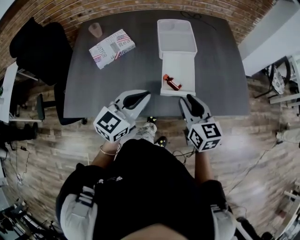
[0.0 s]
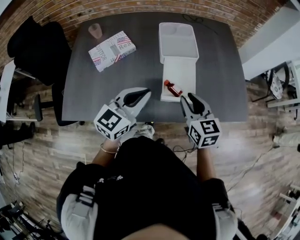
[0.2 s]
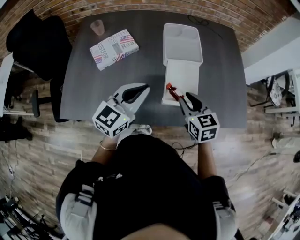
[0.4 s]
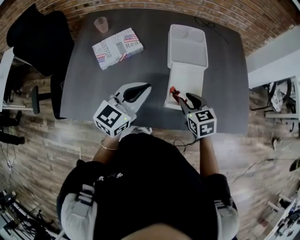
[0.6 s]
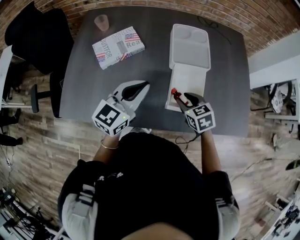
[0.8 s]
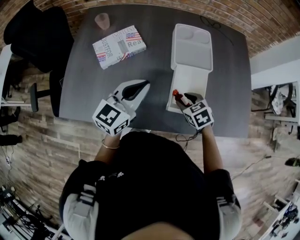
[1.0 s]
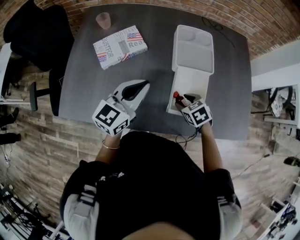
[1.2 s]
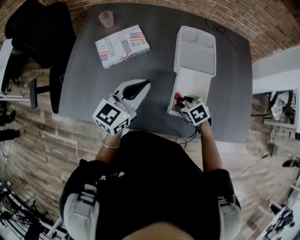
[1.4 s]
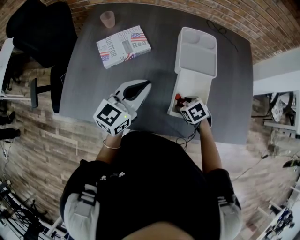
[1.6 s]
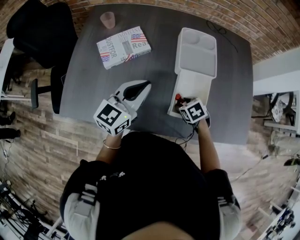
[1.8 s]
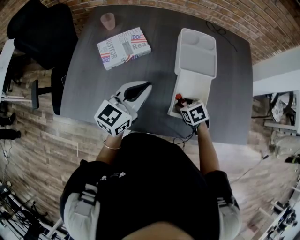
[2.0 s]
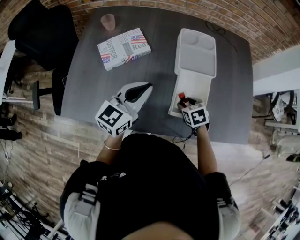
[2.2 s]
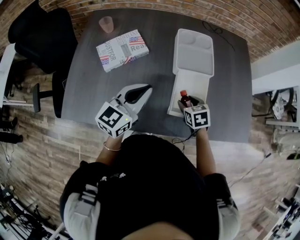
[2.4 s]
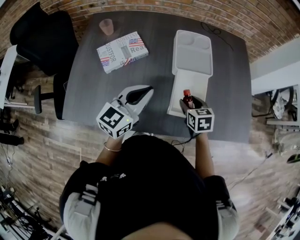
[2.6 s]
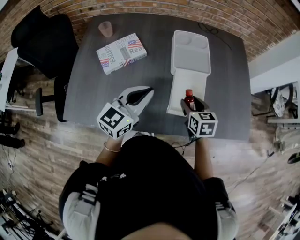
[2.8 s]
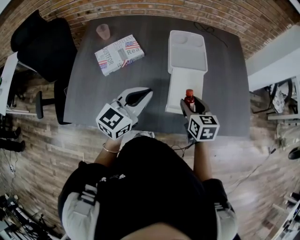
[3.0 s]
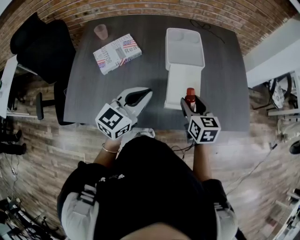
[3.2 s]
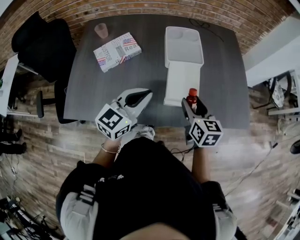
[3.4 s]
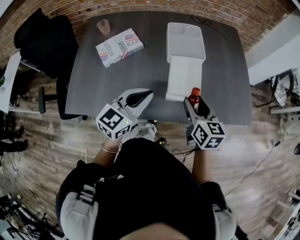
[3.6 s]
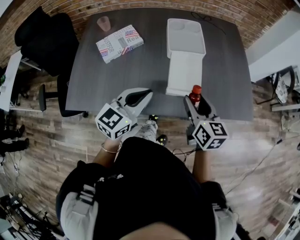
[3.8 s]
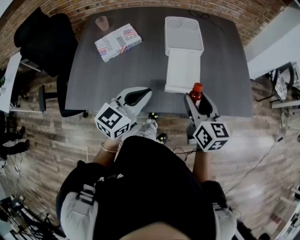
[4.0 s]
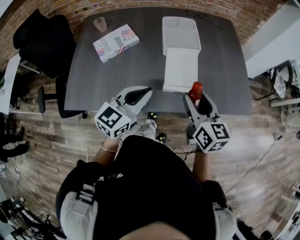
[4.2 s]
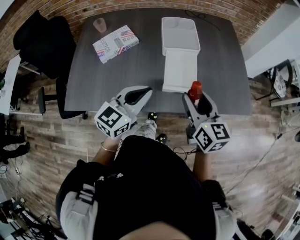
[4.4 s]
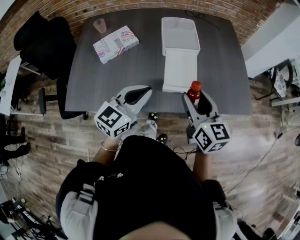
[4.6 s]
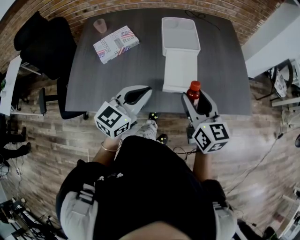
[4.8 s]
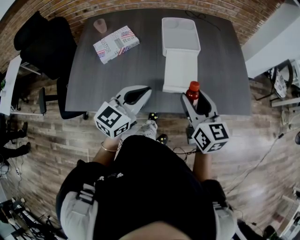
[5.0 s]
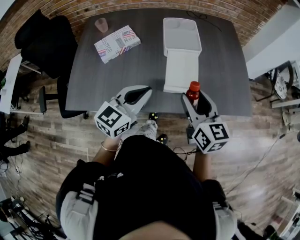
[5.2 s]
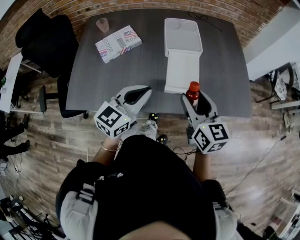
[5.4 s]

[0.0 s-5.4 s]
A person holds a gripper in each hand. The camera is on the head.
0.0 to 1.4 s: The left gripper travels forward and to the left by about 15 cm, while the right gripper moves downward and forward, some 25 cm, tips its fingers downward by about 50 degrees, and opens.
1.4 to 2.8 s: The right gripper goes some 10 cm upward, and rotates about 40 degrees.
2.8 to 4.0 s: The right gripper goes about 15 cm backward and upward, and rotates some 30 degrees, while the left gripper travels backward and to the right by some 10 cm.
4.0 to 5.4 s: There are only small adjustments of the grippers.

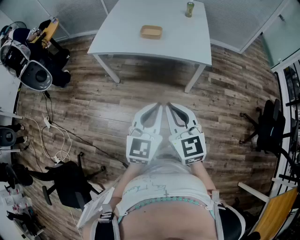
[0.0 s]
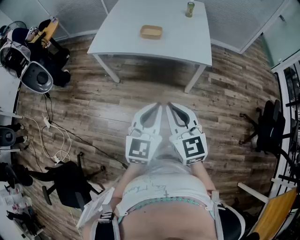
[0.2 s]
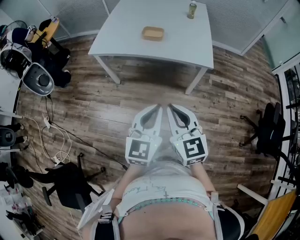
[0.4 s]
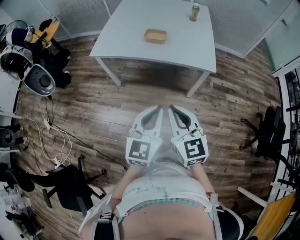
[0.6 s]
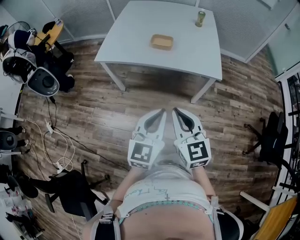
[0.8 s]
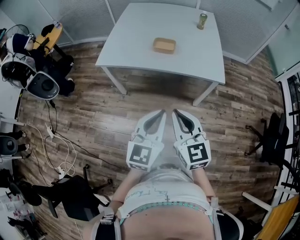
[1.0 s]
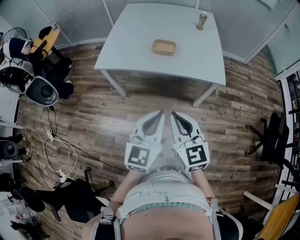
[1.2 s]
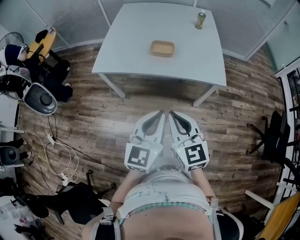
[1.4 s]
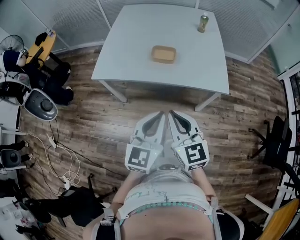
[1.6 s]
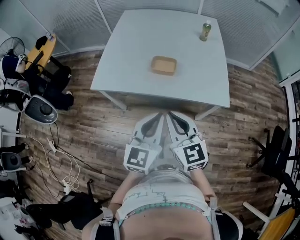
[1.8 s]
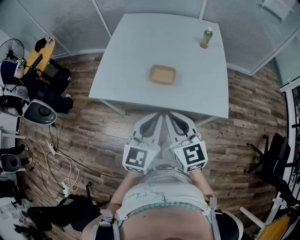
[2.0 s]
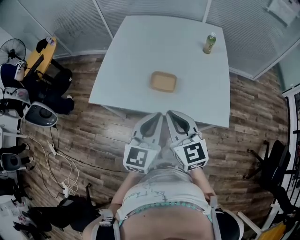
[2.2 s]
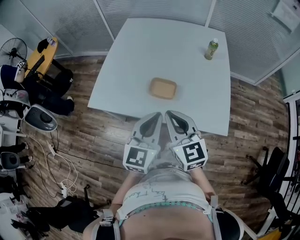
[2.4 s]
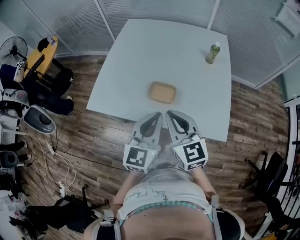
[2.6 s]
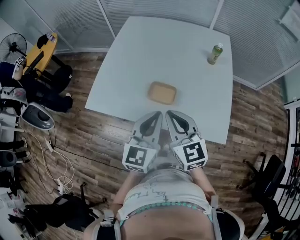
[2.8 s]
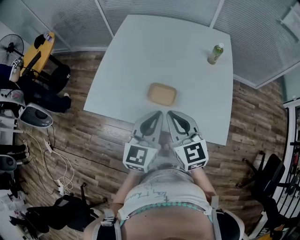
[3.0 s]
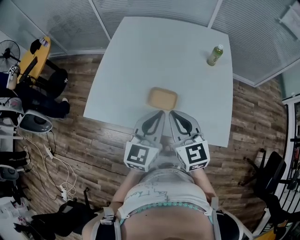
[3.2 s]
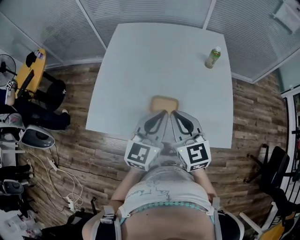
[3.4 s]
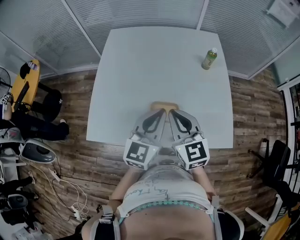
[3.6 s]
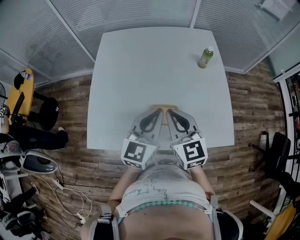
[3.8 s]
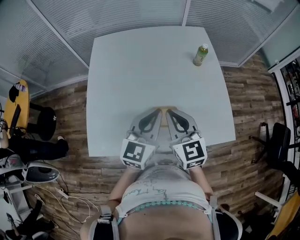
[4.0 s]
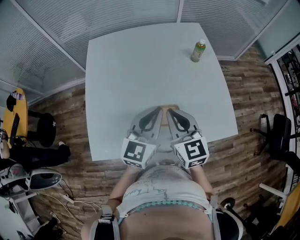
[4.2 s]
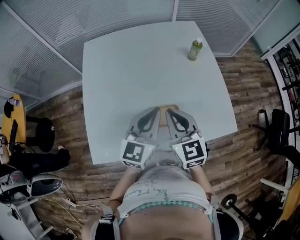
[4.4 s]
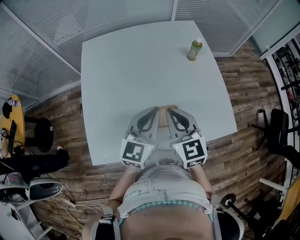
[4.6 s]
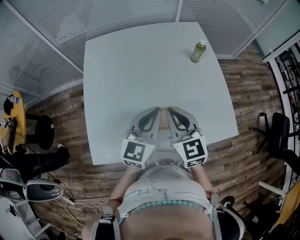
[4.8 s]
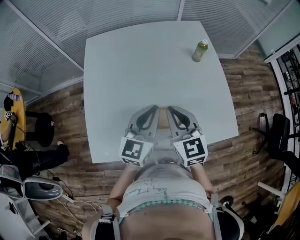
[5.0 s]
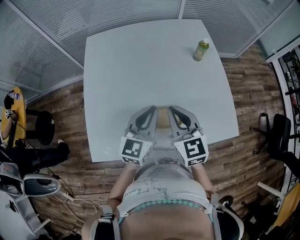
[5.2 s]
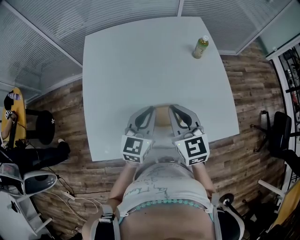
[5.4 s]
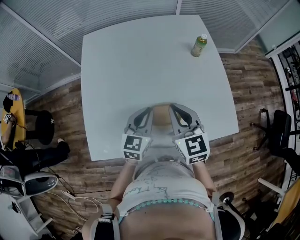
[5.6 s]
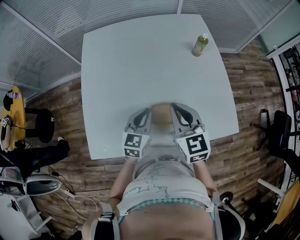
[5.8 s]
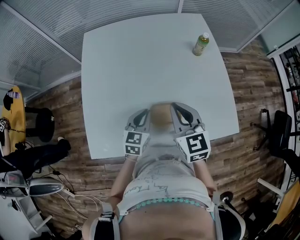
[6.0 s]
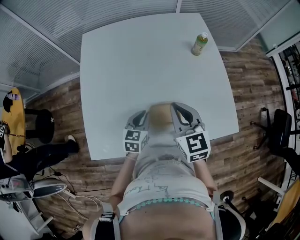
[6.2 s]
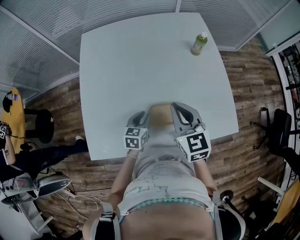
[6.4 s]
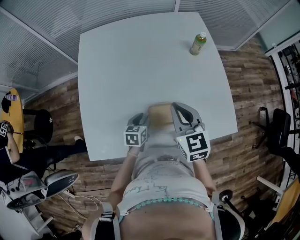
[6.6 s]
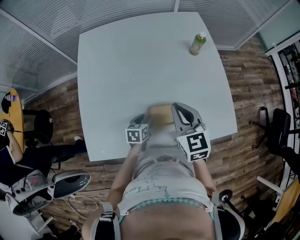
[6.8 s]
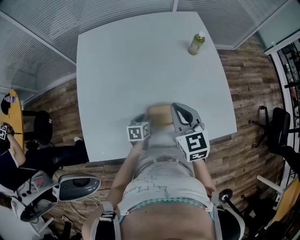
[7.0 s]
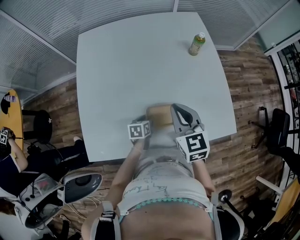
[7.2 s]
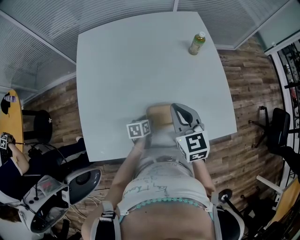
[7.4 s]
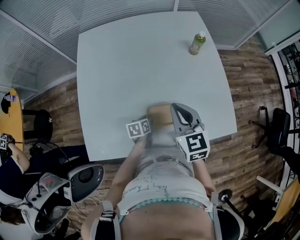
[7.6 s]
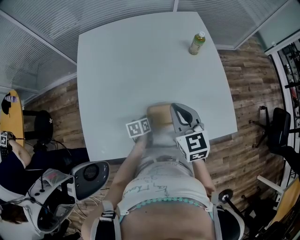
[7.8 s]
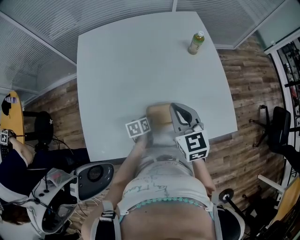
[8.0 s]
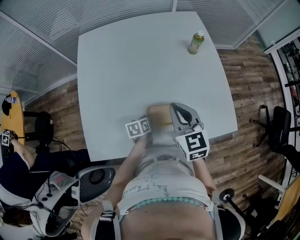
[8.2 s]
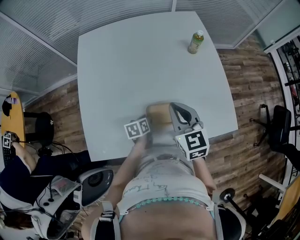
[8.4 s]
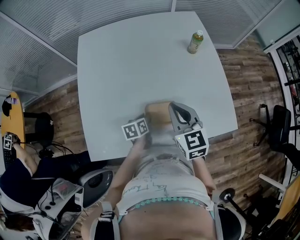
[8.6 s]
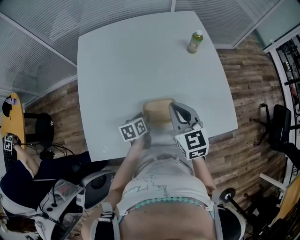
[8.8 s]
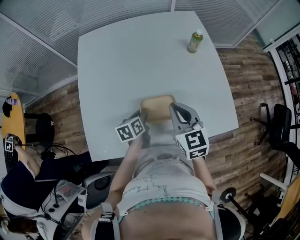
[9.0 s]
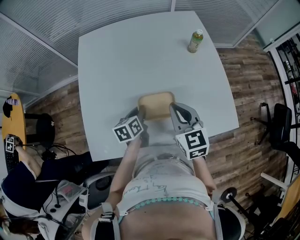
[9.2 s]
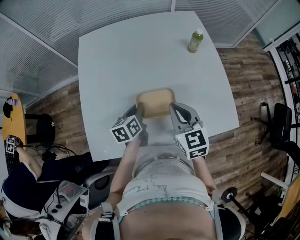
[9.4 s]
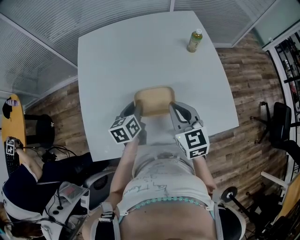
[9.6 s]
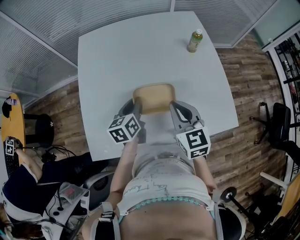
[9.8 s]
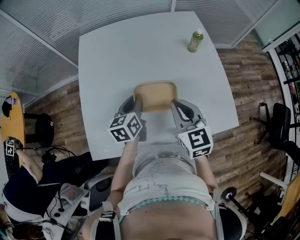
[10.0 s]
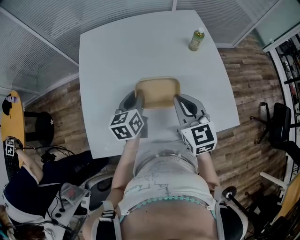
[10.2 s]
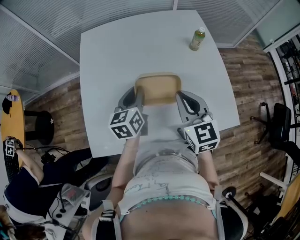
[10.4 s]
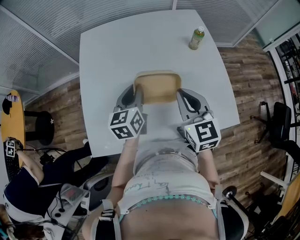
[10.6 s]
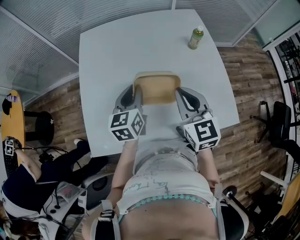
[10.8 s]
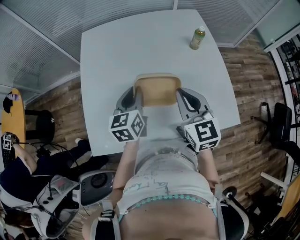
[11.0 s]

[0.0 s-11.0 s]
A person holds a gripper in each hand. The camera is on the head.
0.0 to 1.6 s: The grippers both shift forward and to the left by about 20 cm.
1.6 to 3.2 s: The grippers both shift forward by approximately 35 cm.
3.2 to 4.8 s: The two grippers go some 15 cm forward and to the left. The left gripper changes its angle by approximately 20 degrees. Meanwhile the right gripper changes its angle by approximately 20 degrees.
4.8 to 6.2 s: The left gripper heads downward, covering roughly 20 cm, and changes its angle by about 30 degrees.
6.2 to 7.8 s: The left gripper goes some 15 cm downward, turns by some 40 degrees, and opens, then closes again.
7.8 to 9.4 s: The left gripper moves upward, roughly 15 cm, and rotates approximately 20 degrees.
9.4 to 11.0 s: The right gripper goes some 5 cm upward. The left gripper is displaced upward by approximately 10 cm, and swivels roughly 20 degrees.

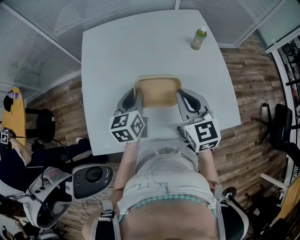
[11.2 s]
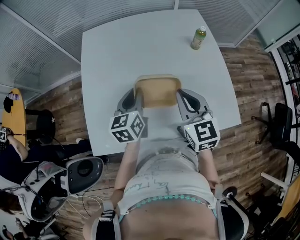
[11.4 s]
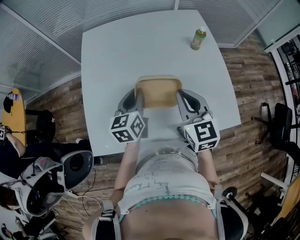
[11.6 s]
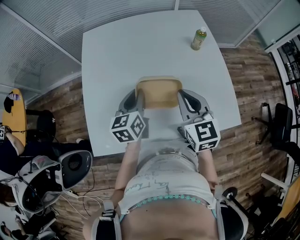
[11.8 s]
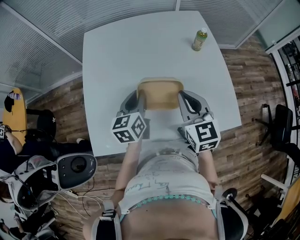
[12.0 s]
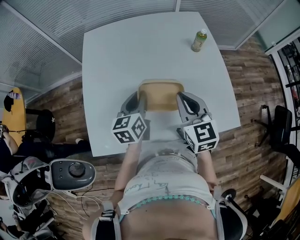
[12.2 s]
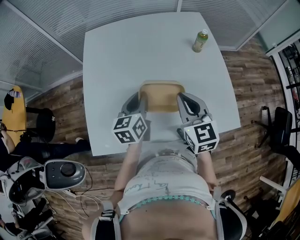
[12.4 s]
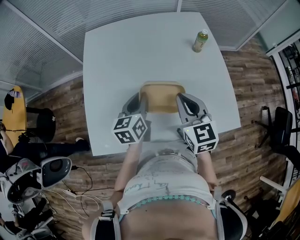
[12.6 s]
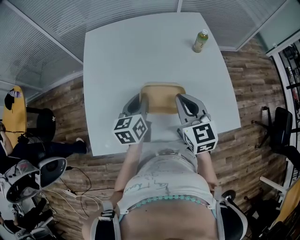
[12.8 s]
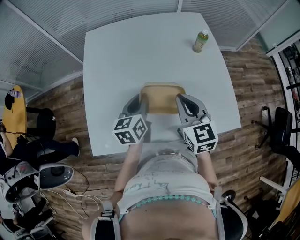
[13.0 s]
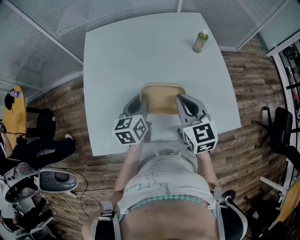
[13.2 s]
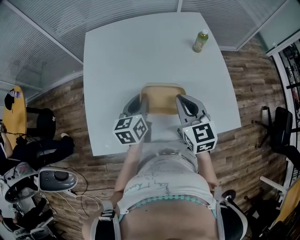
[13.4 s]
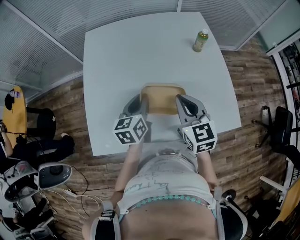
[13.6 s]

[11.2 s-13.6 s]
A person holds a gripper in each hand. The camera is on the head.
11.2 to 12.4 s: There are only small adjustments of the grippers.
12.4 to 13.6 s: Both grippers stay about where they are.

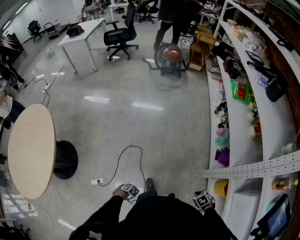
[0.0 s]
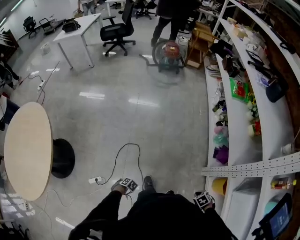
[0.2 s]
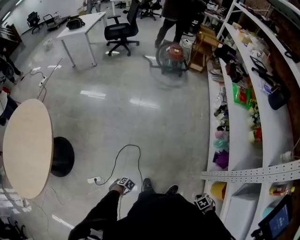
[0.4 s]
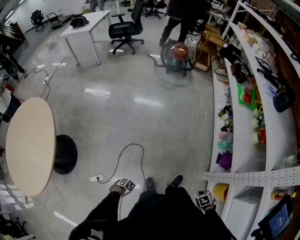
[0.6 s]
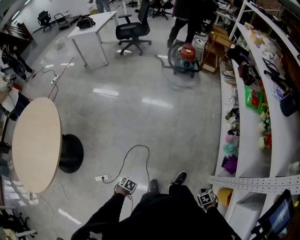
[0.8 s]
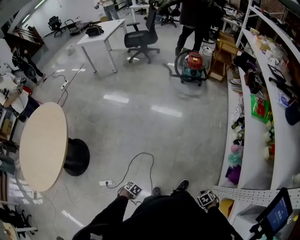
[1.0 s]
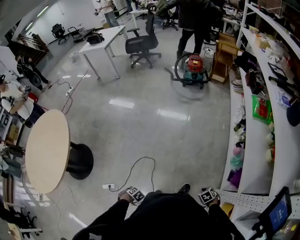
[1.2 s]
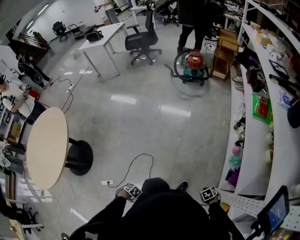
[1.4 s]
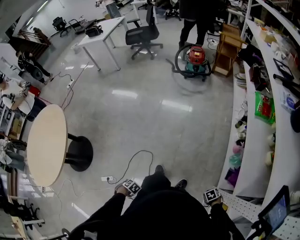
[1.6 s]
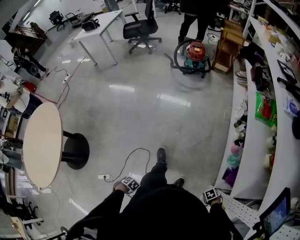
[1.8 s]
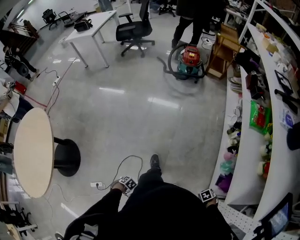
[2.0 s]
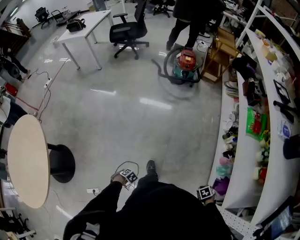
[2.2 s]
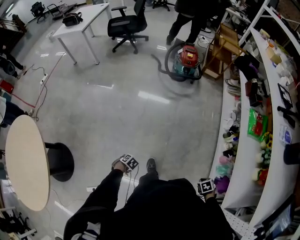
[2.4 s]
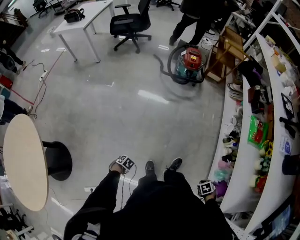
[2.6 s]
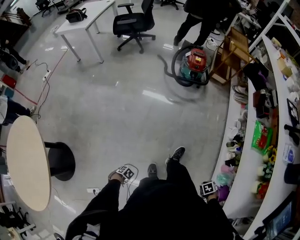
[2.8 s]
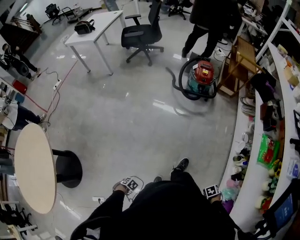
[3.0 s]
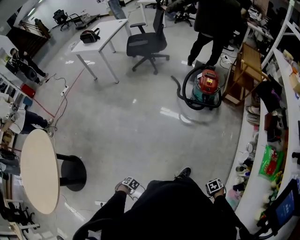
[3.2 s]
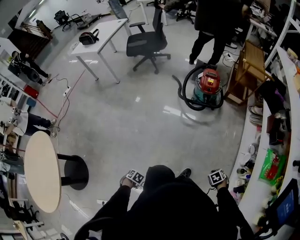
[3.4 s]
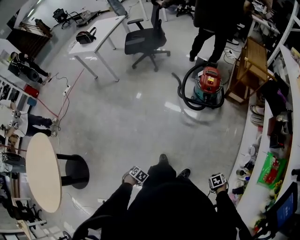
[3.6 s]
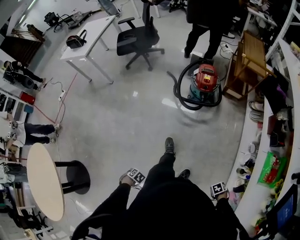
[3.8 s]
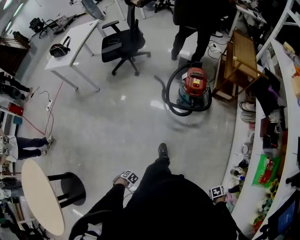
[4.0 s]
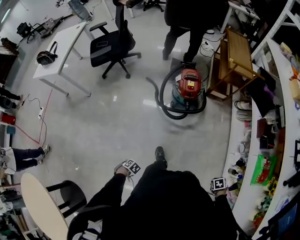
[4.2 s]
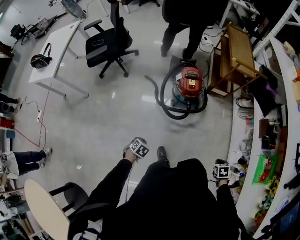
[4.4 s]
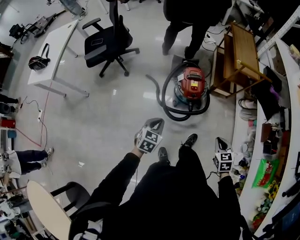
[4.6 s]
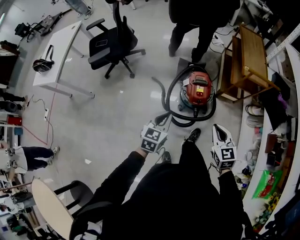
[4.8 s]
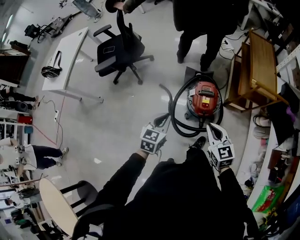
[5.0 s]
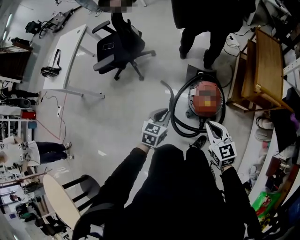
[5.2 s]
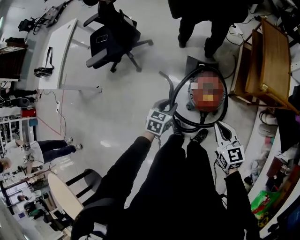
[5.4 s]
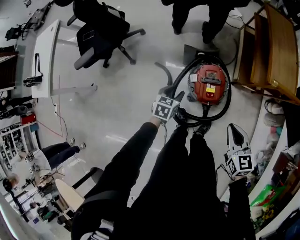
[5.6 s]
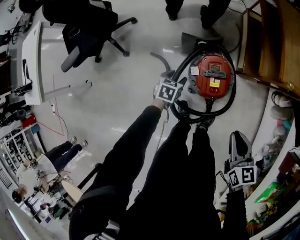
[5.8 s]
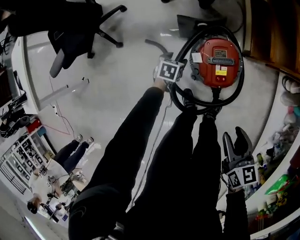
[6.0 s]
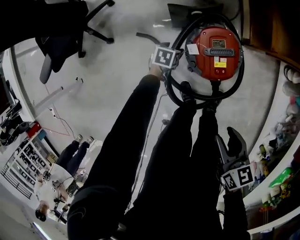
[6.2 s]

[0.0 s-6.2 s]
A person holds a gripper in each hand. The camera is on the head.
0.0 to 1.6 s: The left gripper ends up roughly 20 cm from where it was. The right gripper changes place by roughly 25 cm.
1.6 to 3.2 s: Both grippers are carried some 50 cm.
3.2 to 4.6 s: The pair of grippers is taken about 70 cm. The left gripper angles its fingers upward, by approximately 40 degrees, while the right gripper tilts its fingers approximately 40 degrees upward.
4.6 to 6.2 s: The right gripper goes some 35 cm forward and downward, swivels approximately 40 degrees, and opens its fingers; the left gripper travels forward and downward by approximately 70 cm, rotates some 30 degrees, and opens its fingers.
